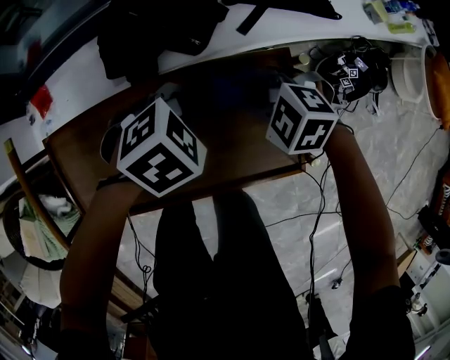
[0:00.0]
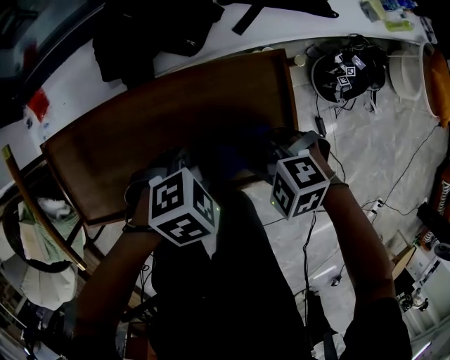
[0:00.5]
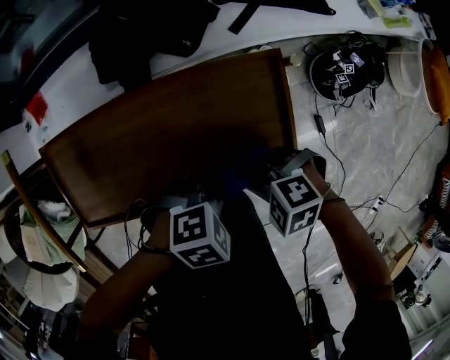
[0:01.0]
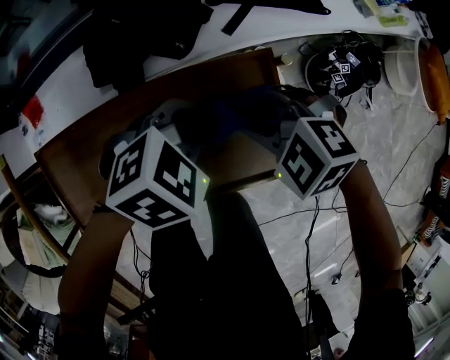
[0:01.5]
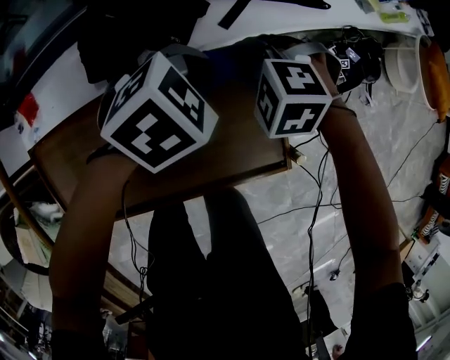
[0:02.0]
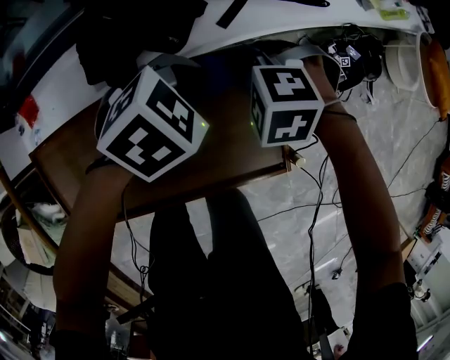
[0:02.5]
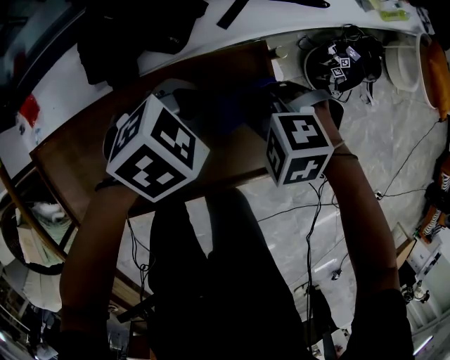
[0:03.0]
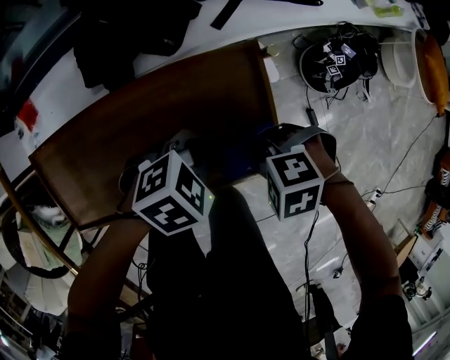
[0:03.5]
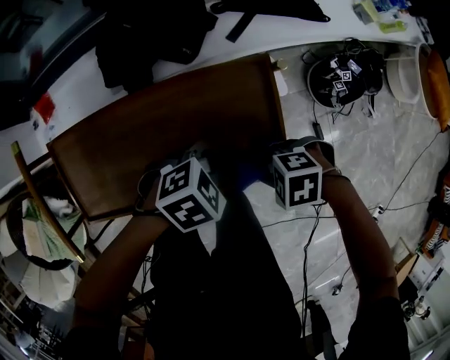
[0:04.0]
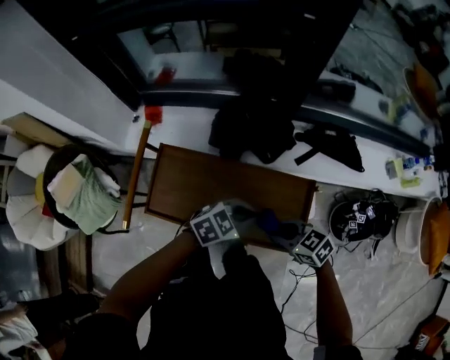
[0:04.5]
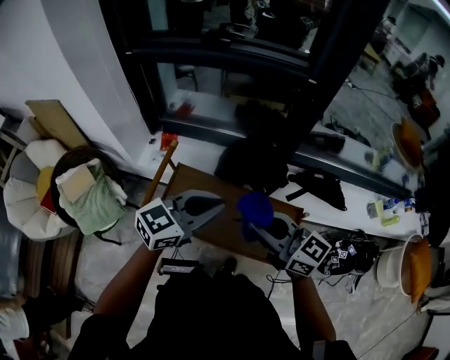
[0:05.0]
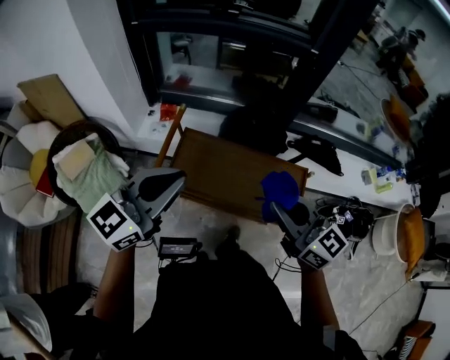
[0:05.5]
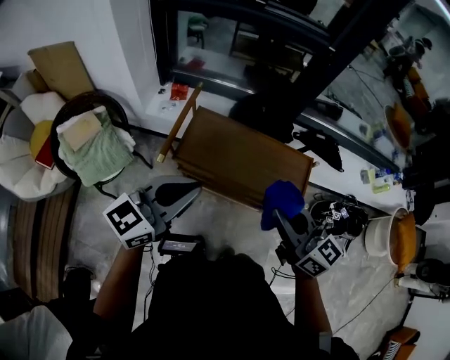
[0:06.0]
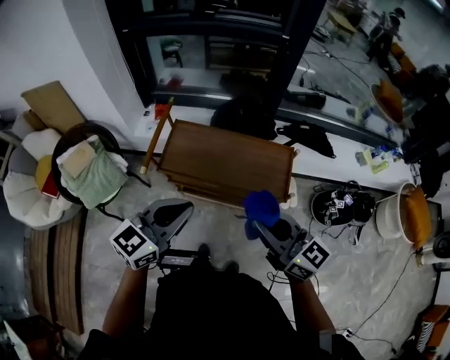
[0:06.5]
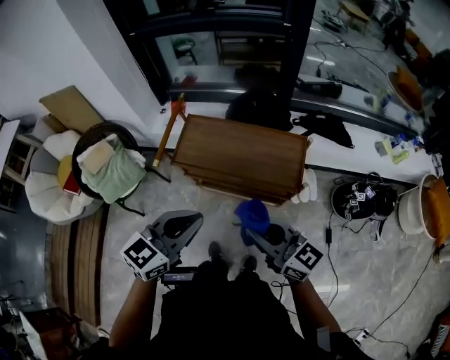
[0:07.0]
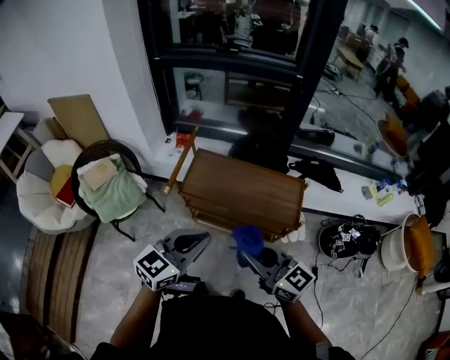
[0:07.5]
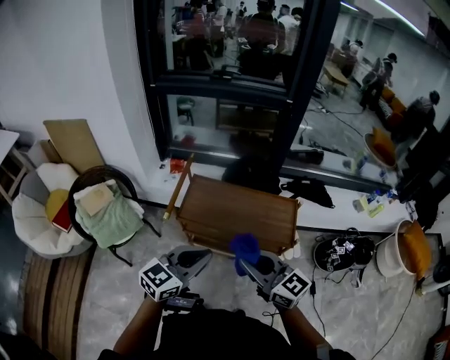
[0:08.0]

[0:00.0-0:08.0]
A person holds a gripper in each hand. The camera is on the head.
0:02.0 to 0:04.0: The right gripper changes place by roughly 25 cm, and changes its angle by approximately 40 degrees; the left gripper moves approximately 15 cm.
0:04.0 to 0:06.0: The left gripper ends up roughly 60 cm from where it was, and tips its fingers upward by roughly 60 degrees. The right gripper is displaced upward by about 40 cm, and points its fingers approximately 60 degrees further upward.
0:06.0 to 0:08.0: The right gripper is displaced backward by some 10 cm; the left gripper moves backward and to the right, roughly 10 cm.

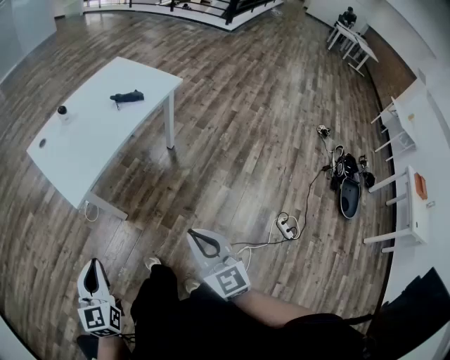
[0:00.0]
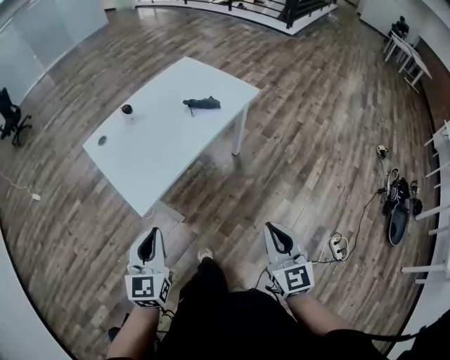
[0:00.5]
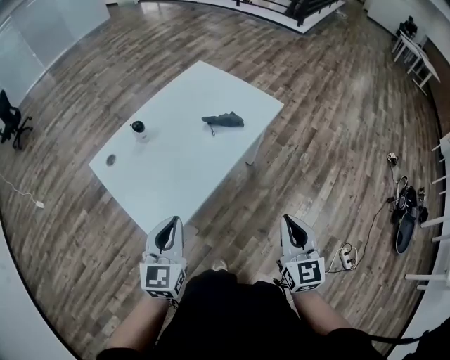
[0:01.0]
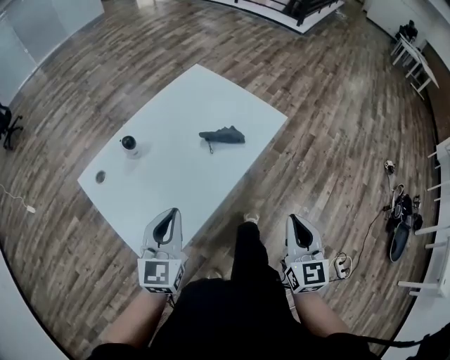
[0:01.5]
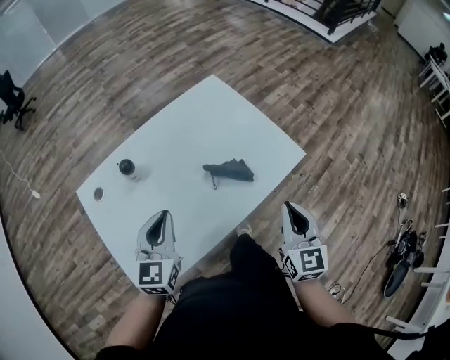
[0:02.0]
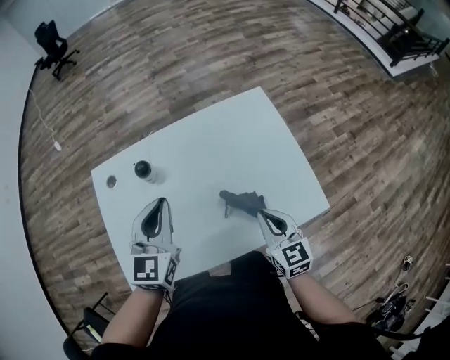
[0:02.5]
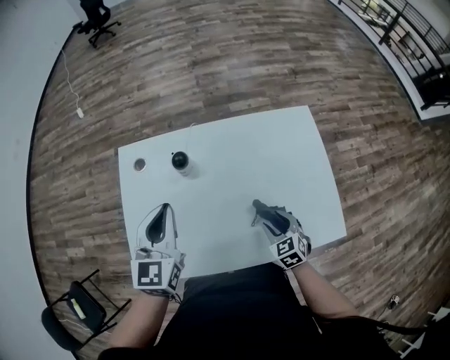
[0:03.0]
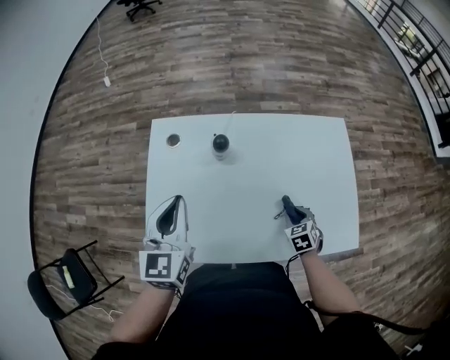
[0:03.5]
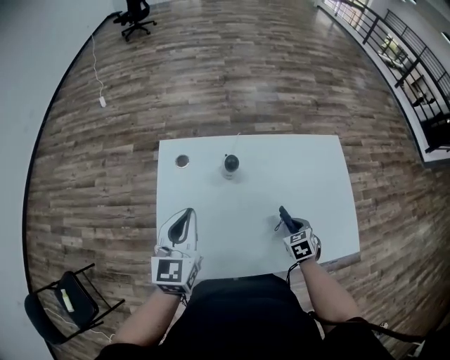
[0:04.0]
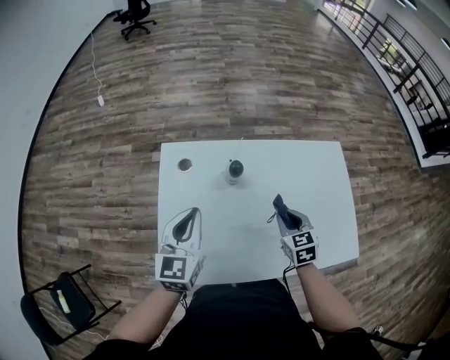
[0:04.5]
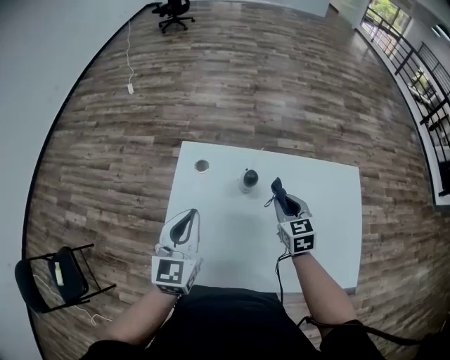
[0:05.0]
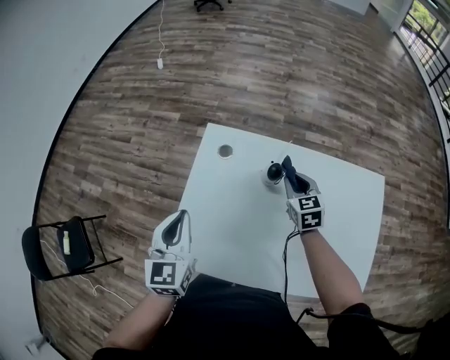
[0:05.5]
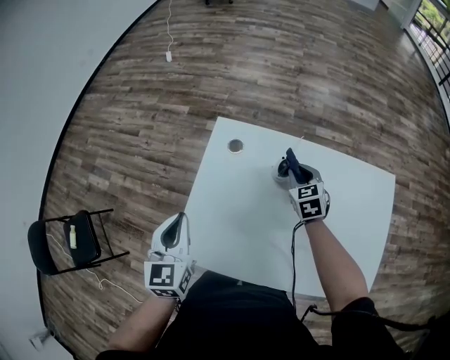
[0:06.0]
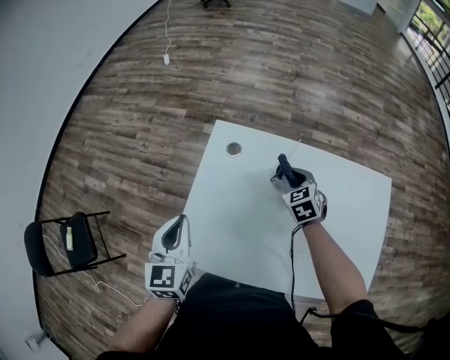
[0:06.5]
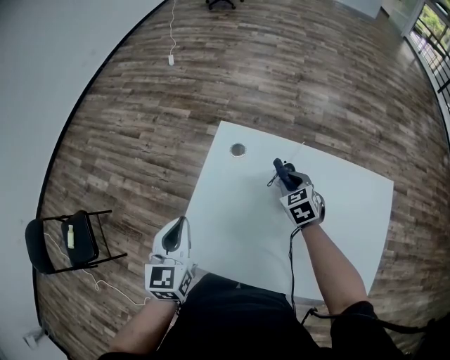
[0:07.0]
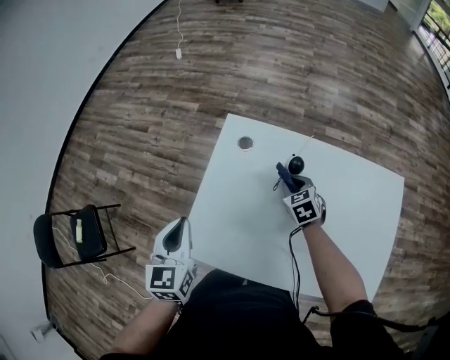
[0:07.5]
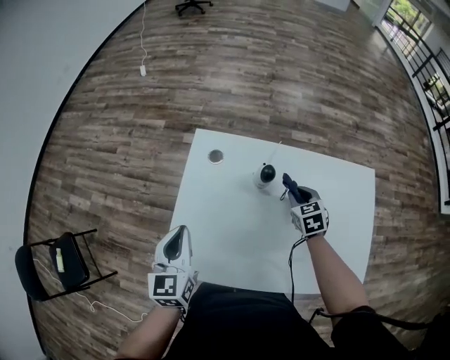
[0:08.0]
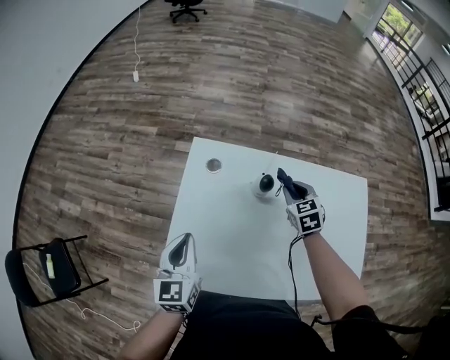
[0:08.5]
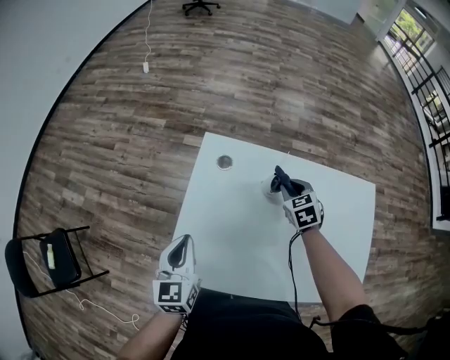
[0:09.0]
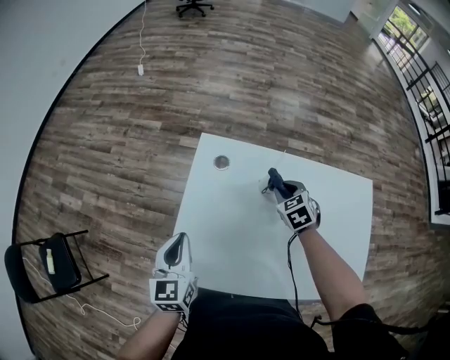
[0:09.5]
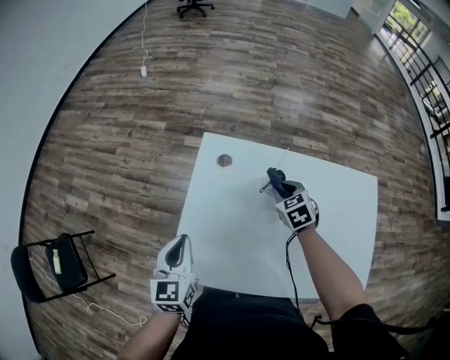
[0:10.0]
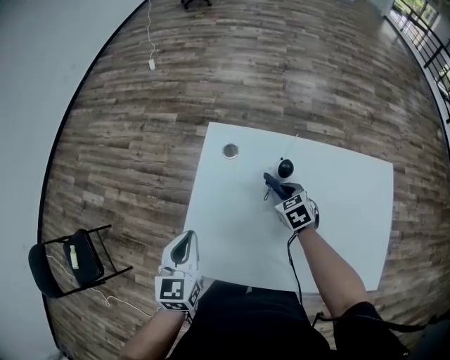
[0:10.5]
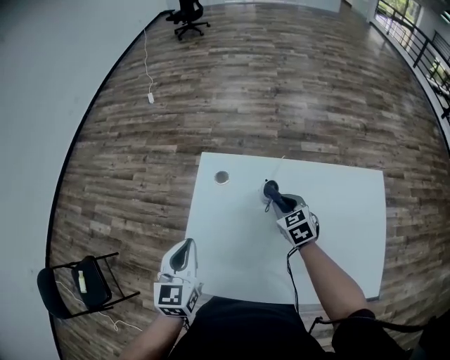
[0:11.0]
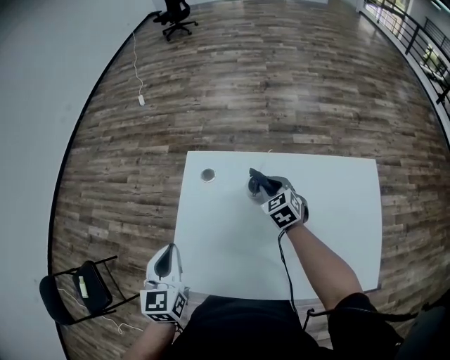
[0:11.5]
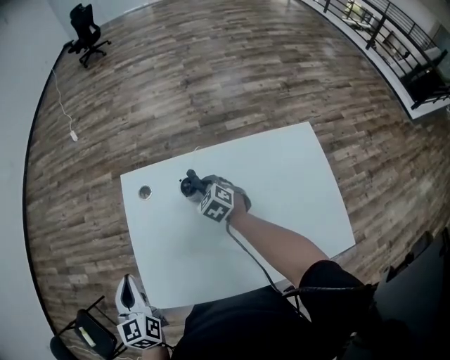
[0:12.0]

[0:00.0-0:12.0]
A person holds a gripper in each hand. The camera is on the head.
0:00.0 to 0:02.0: The two grippers travel together, forward, about 50 cm.
0:02.0 to 0:04.0: The right gripper moves some 30 cm, points its fingers approximately 40 degrees further downward, and opens and closes again. Meanwhile the left gripper changes place by about 15 cm, and changes its angle by roughly 40 degrees.
0:04.0 to 0:06.0: The left gripper heads to the left, covering approximately 10 cm, and rotates roughly 20 degrees; the right gripper is displaced forward and to the left by approximately 25 cm, and turns by approximately 30 degrees.
0:06.0 to 0:08.0: The right gripper moves backward and to the right, about 10 cm.
0:08.0 to 0:10.0: The right gripper goes some 10 cm to the left.
0:10.0 to 0:12.0: The right gripper swings up and down, approximately 5 cm each way, with 2 reversals.

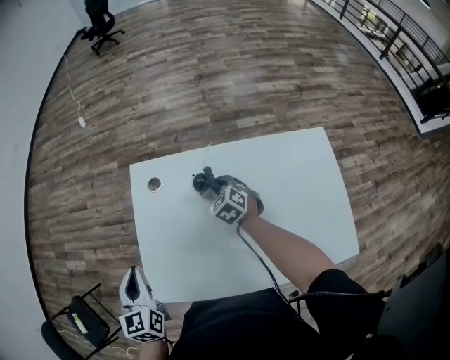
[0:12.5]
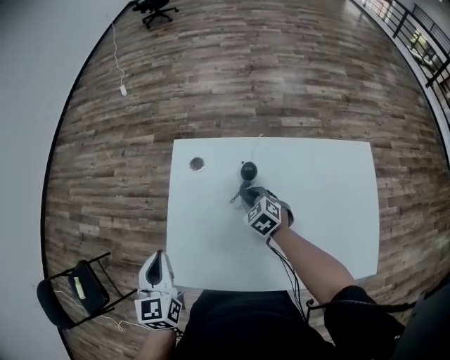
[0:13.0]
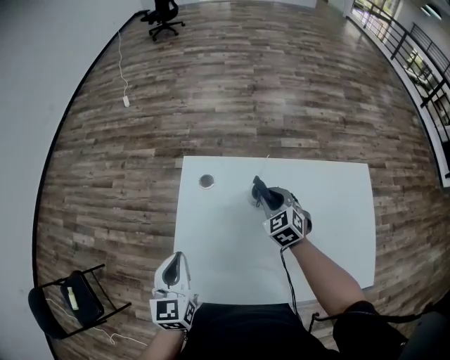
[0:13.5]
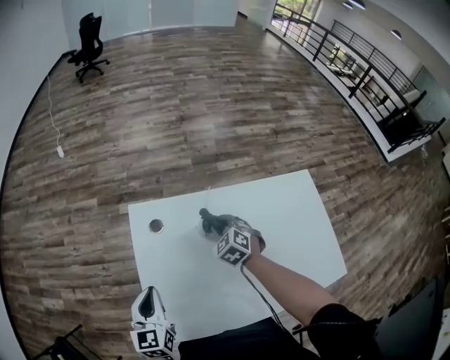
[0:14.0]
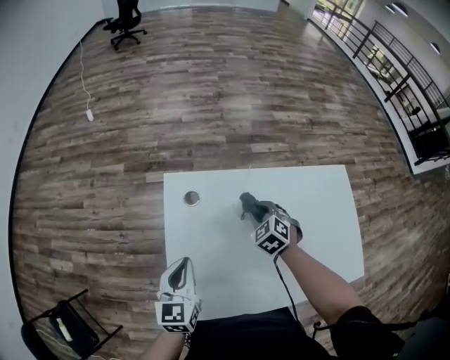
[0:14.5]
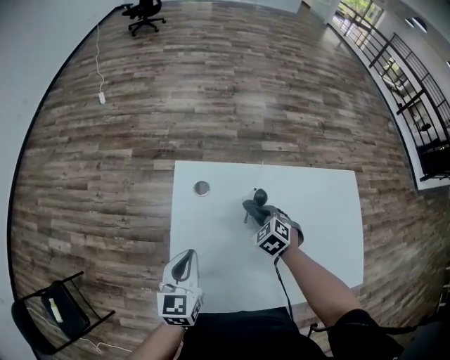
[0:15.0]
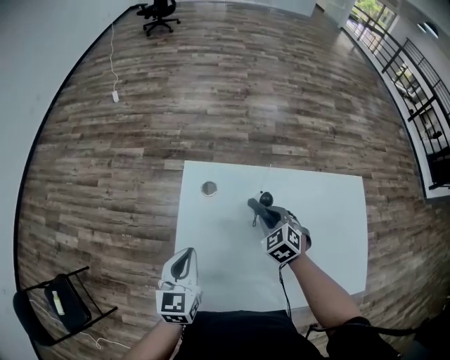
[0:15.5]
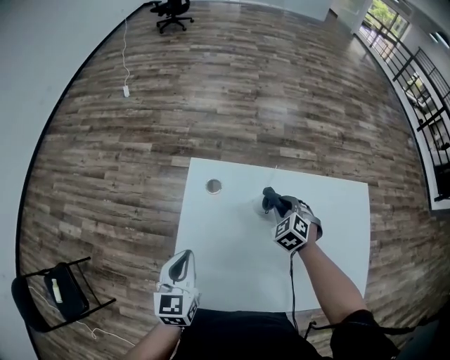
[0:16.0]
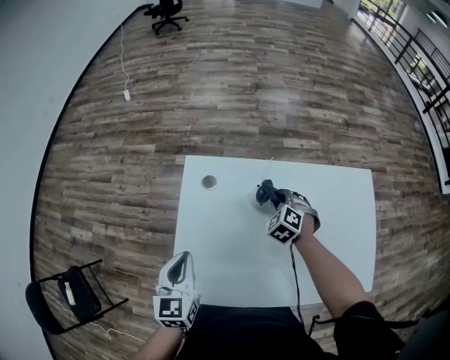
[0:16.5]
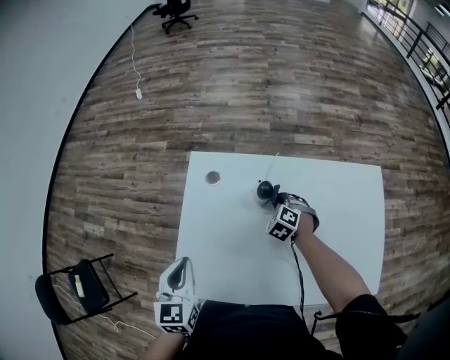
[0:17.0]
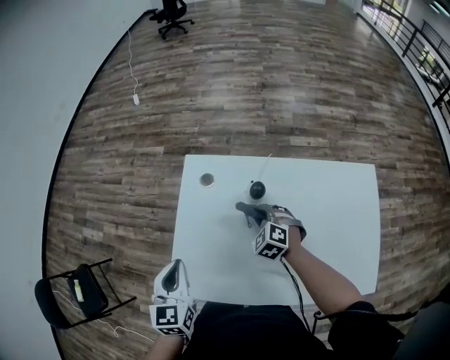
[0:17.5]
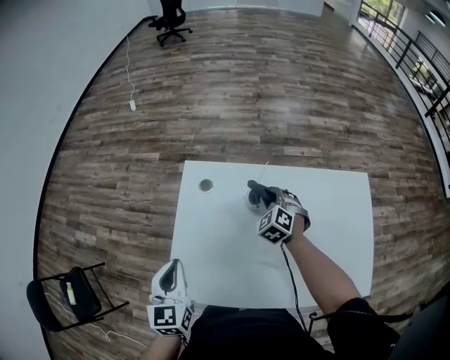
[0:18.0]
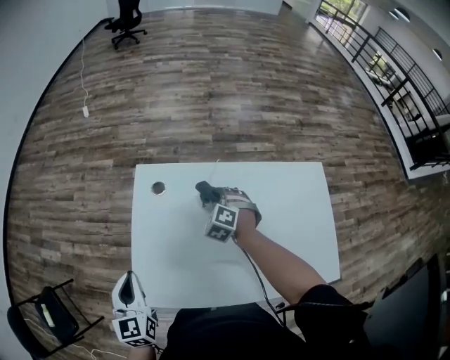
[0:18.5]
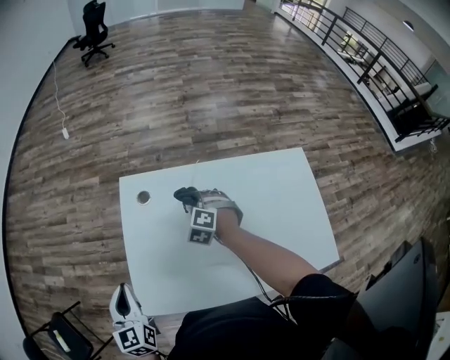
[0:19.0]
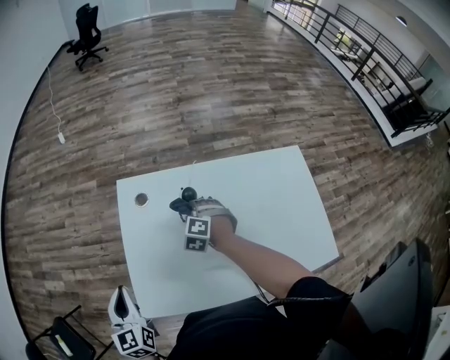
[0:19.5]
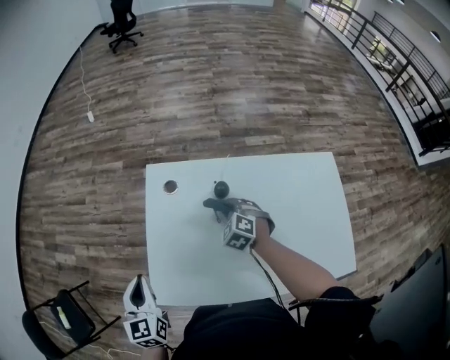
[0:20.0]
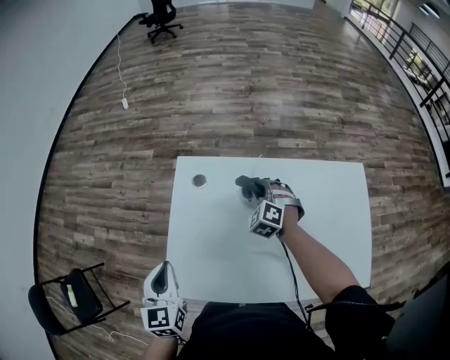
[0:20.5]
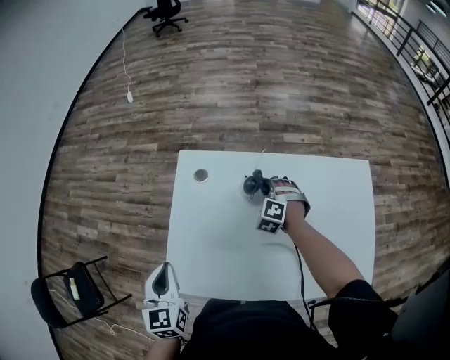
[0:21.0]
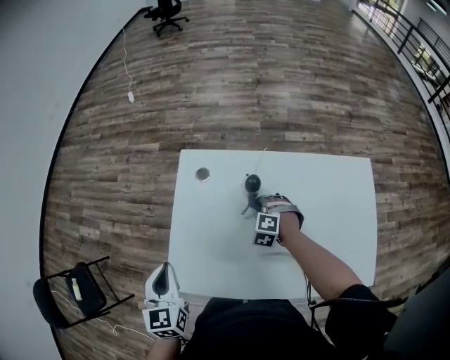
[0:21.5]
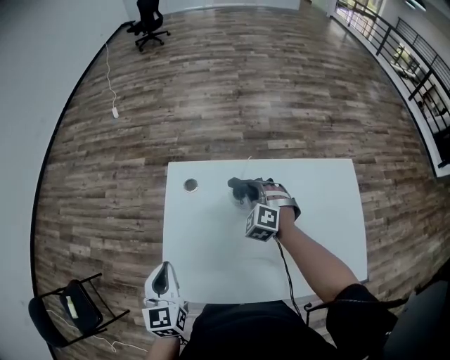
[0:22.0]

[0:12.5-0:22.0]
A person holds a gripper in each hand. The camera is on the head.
0:12.5 to 0:14.5: The left gripper changes place by approximately 10 cm.
0:16.5 to 0:18.0: The right gripper moves about 5 cm downward and comes back.
0:18.0 to 0:20.0: The left gripper heads to the left, covering approximately 5 cm, while the right gripper heads backward, covering approximately 5 cm.
0:20.0 to 0:22.0: The right gripper heads upward and forward, covering roughly 10 cm.
